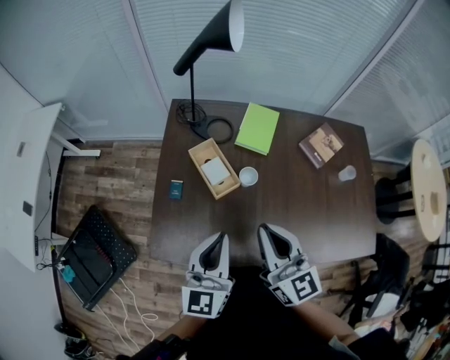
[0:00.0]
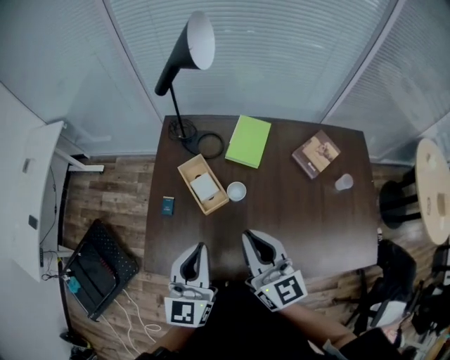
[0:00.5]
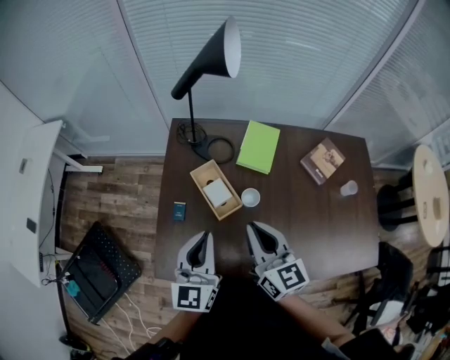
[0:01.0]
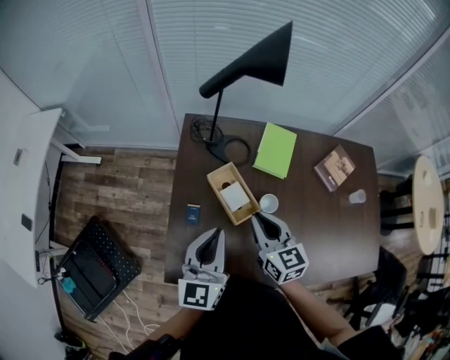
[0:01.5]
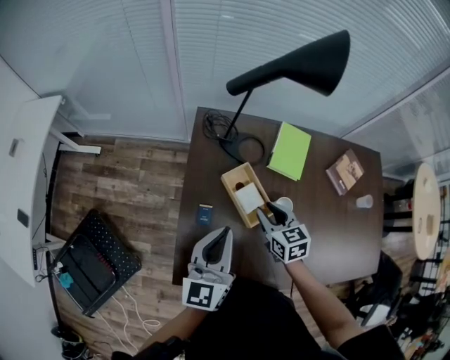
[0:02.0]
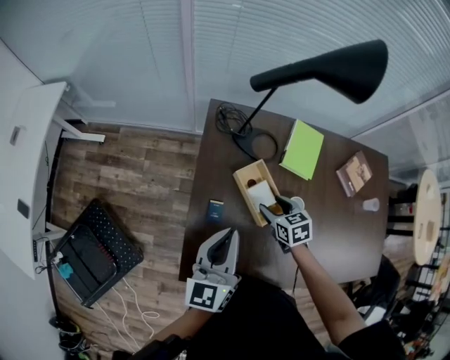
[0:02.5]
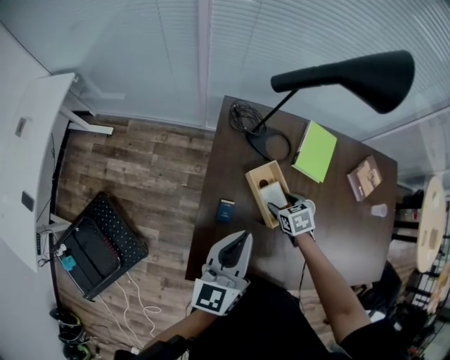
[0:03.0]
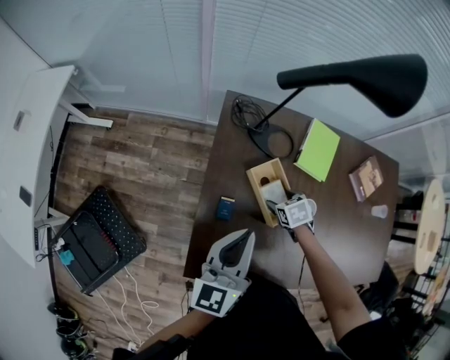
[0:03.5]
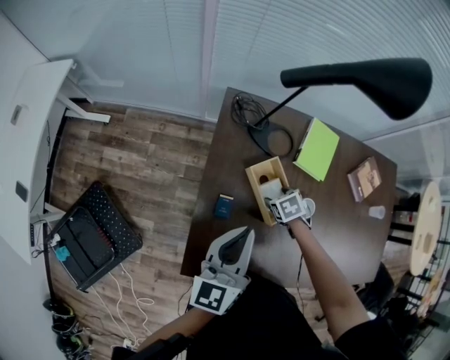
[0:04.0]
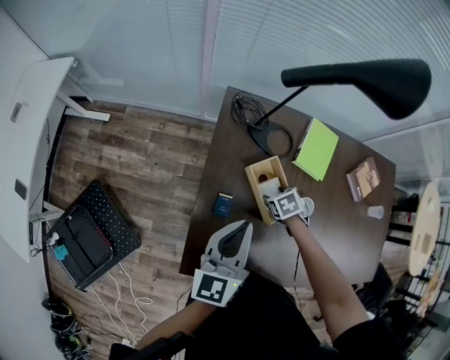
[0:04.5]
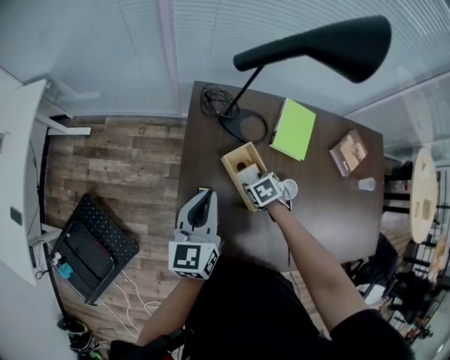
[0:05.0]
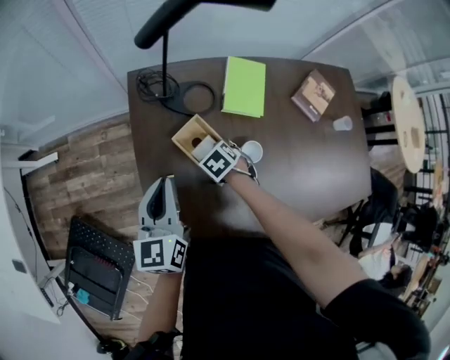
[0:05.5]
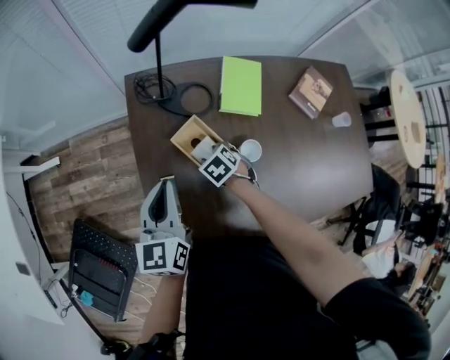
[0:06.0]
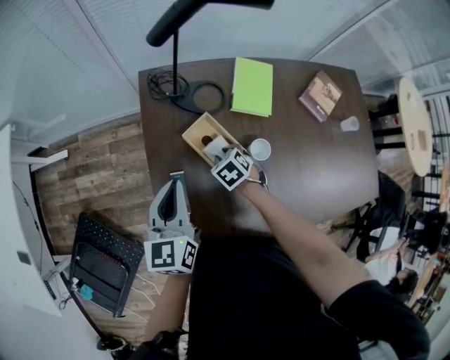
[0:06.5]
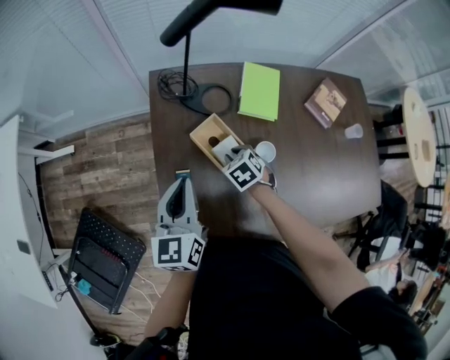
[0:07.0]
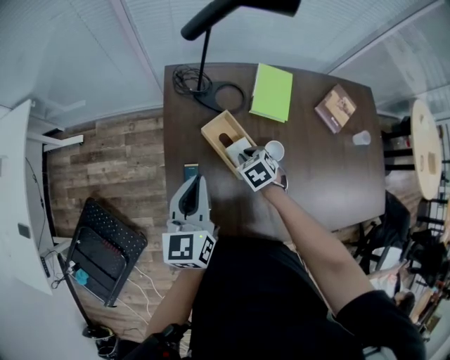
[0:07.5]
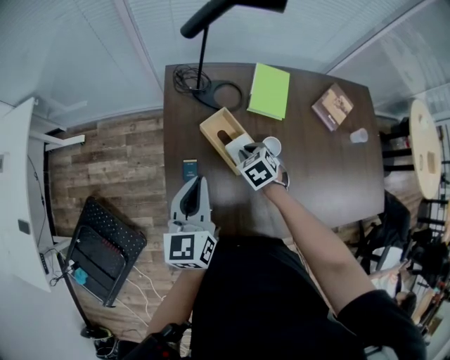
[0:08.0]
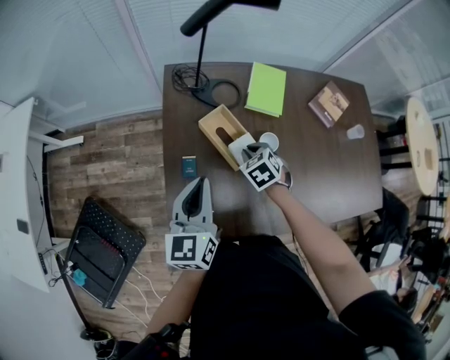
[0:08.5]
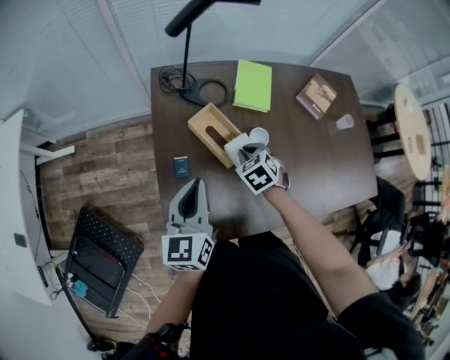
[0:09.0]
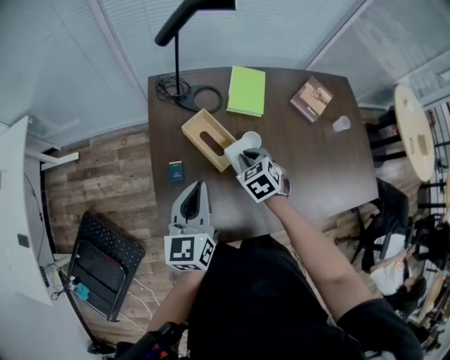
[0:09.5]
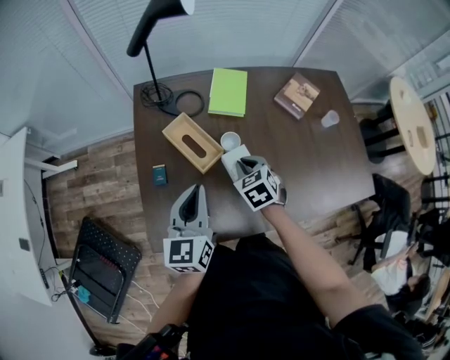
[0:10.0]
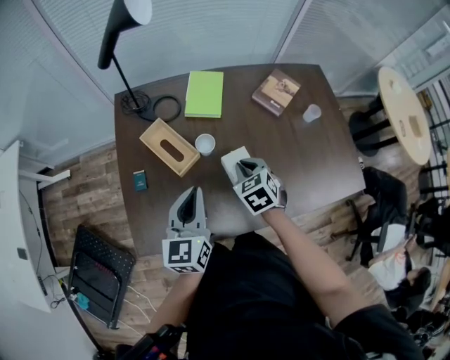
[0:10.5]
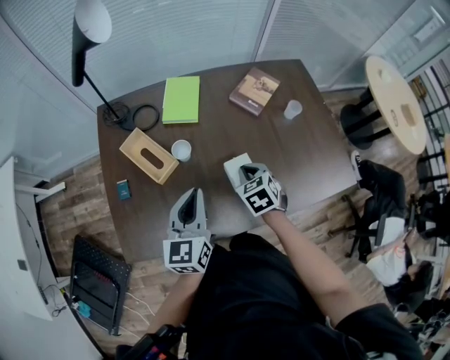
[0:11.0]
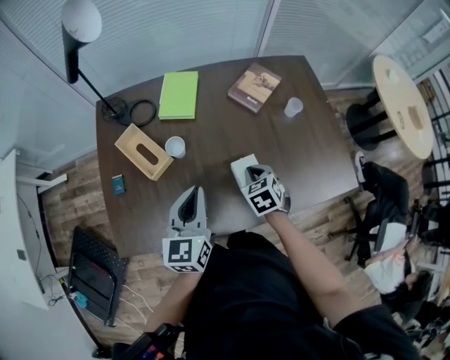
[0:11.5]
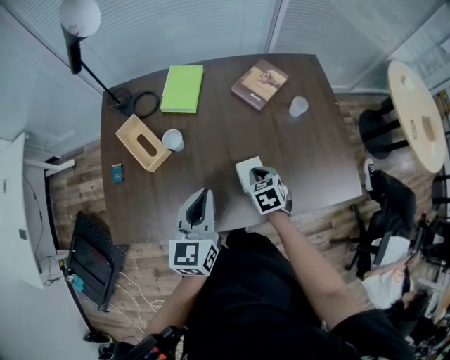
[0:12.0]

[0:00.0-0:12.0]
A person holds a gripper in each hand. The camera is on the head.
0:00.0 to 0:02.0: The right gripper moves downward and forward, some 30 cm, points its fingers roughly 40 degrees further downward, and opens up. Meanwhile the left gripper travels forward and to the left by about 20 cm.
0:02.0 to 0:04.0: The right gripper travels downward by roughly 15 cm, tips its fingers downward by some 40 degrees, and opens its fingers.
0:04.0 to 0:06.0: The left gripper moves some 5 cm.
0:06.0 to 0:08.0: The left gripper is displaced backward by about 5 cm, while the right gripper is displaced upward by some 5 cm, and closes its fingers.
0:08.0 to 0:10.0: The left gripper shifts about 15 cm to the right and backward. The right gripper shifts about 15 cm to the right, backward and upward.
0:10.0 to 0:12.0: Both grippers move to the right, approximately 25 cm.

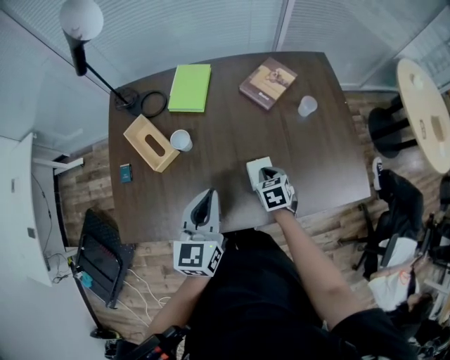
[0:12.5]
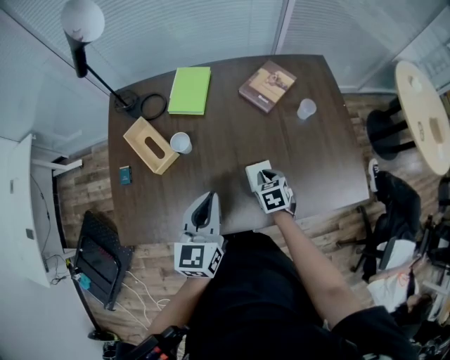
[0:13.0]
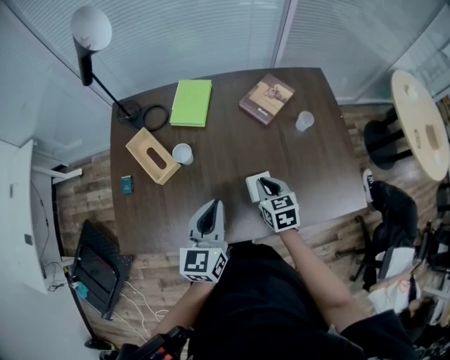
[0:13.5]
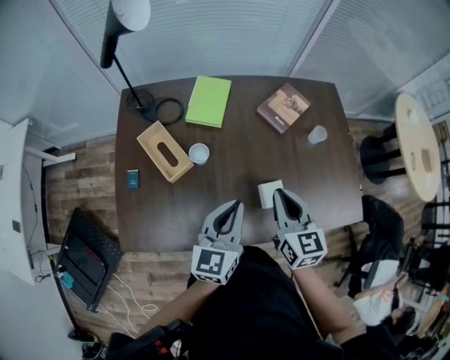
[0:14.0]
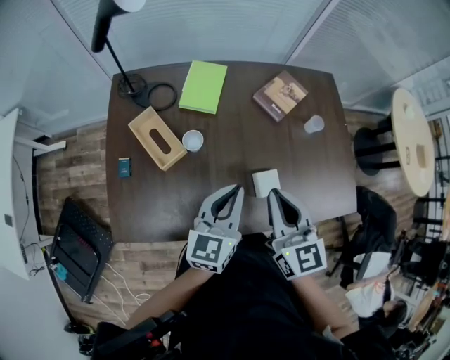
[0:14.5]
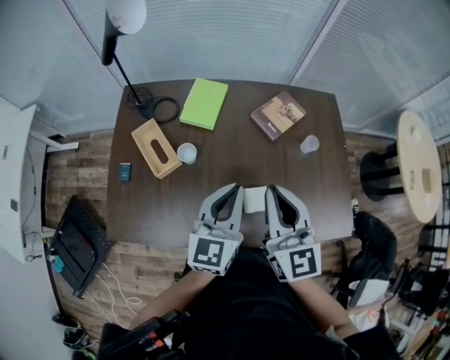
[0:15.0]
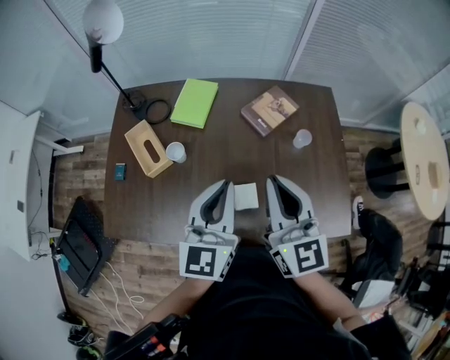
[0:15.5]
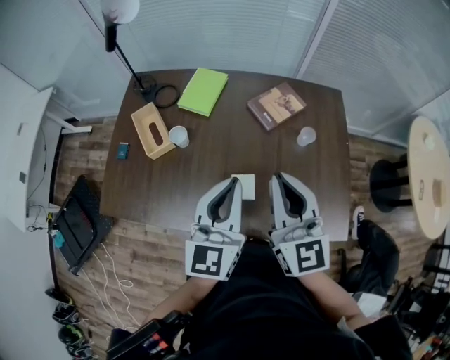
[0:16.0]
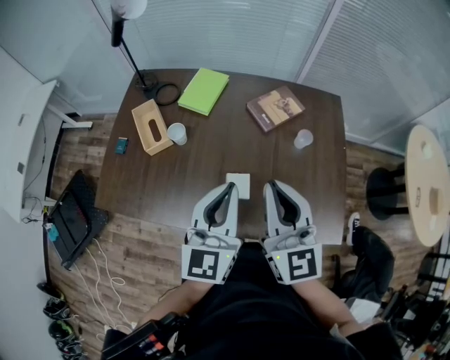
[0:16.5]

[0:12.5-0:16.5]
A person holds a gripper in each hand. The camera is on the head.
0:12.5 to 0:14.5: The right gripper is displaced upward by roughly 30 cm, and tilts its fingers approximately 40 degrees upward.
0:14.5 to 0:16.5: The grippers both shift to the right and upward by about 15 cm. The left gripper swivels roughly 30 degrees.

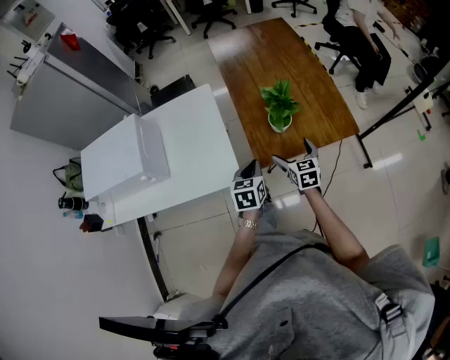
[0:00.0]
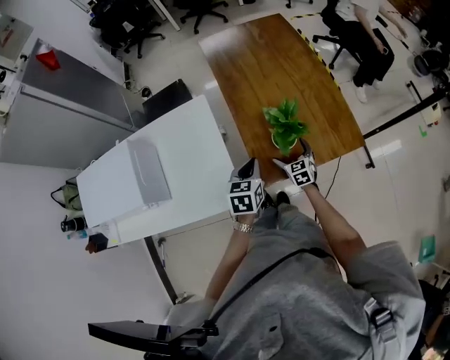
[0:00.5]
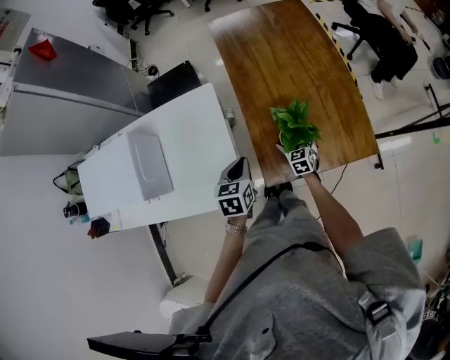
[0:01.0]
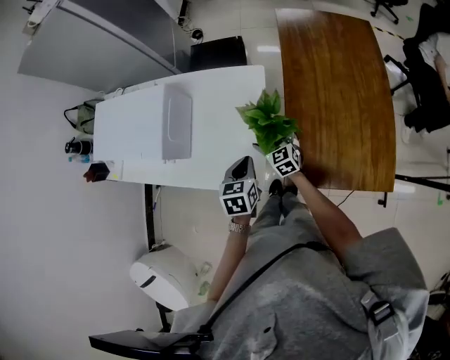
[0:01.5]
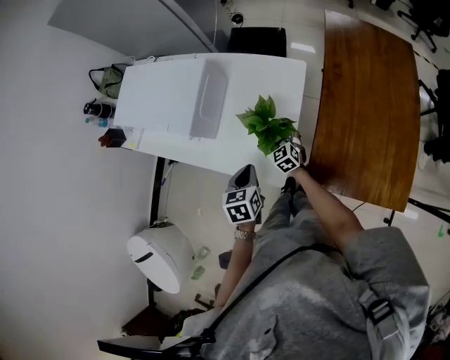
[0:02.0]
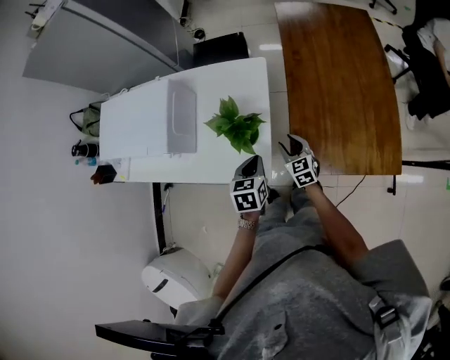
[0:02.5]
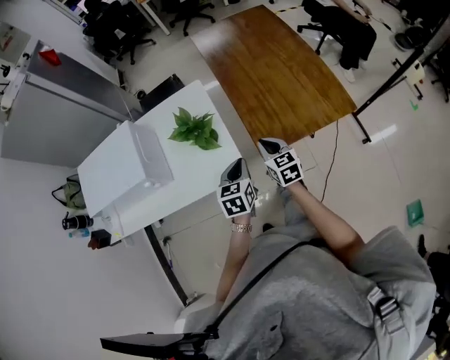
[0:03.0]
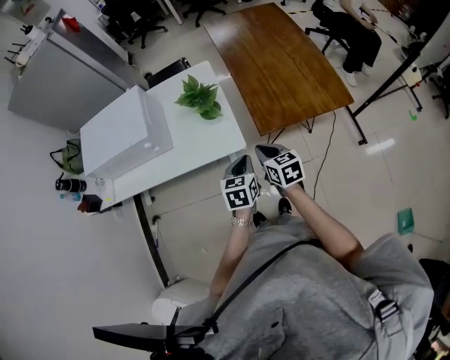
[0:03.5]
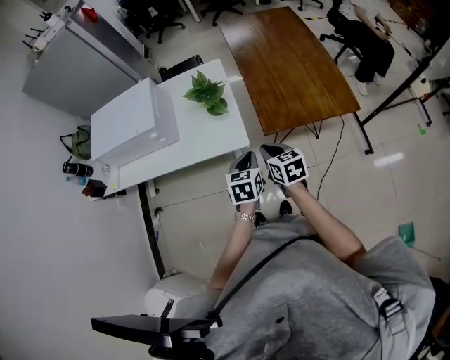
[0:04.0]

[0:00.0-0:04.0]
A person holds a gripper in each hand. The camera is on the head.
0:00.0 to 0:02.0: The right gripper goes up and down, about 15 cm each way, reversing 2 times, and swivels approximately 50 degrees. Meanwhile the left gripper shifts by some 25 cm, and swivels some 40 degrees.
0:02.0 to 0:04.0: The right gripper ends up about 40 cm from where it was, rolls clockwise, seen from behind, by some 40 degrees, and closes. The left gripper changes place by some 25 cm, and swivels roughly 30 degrees.

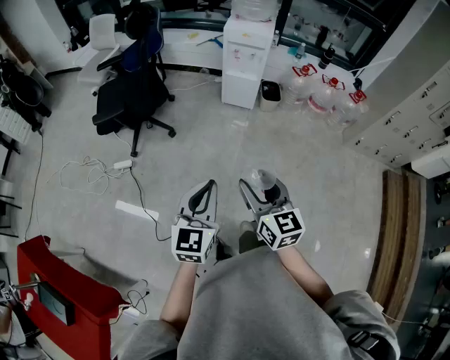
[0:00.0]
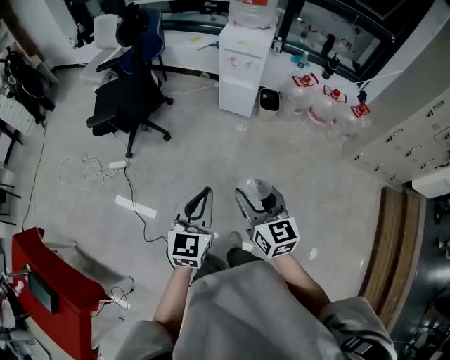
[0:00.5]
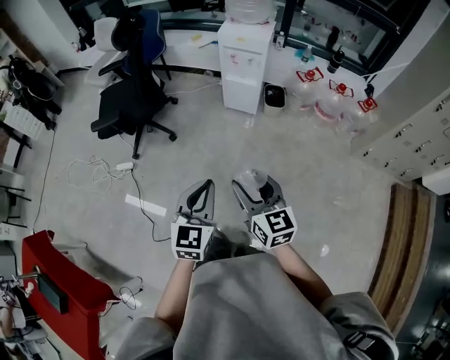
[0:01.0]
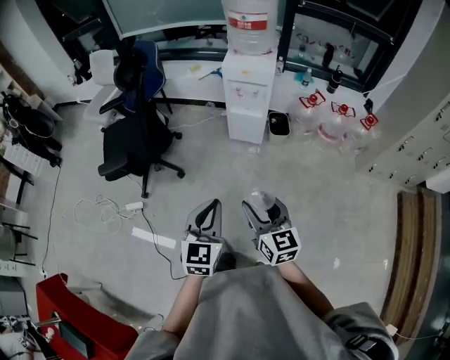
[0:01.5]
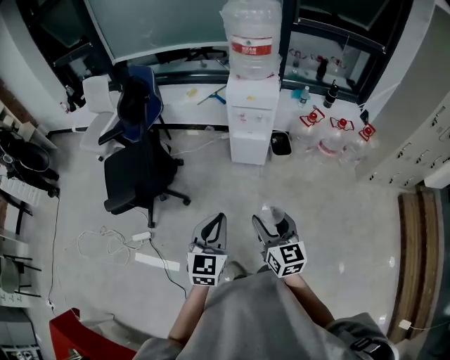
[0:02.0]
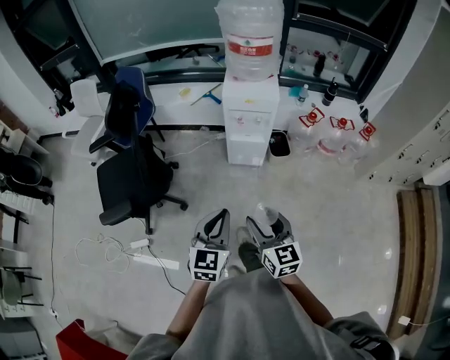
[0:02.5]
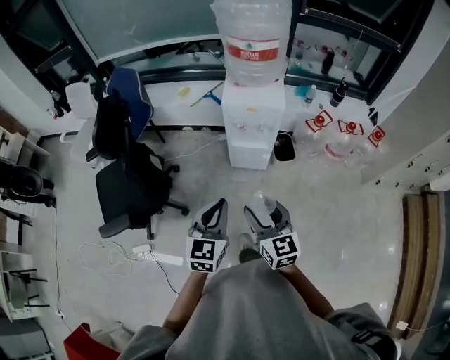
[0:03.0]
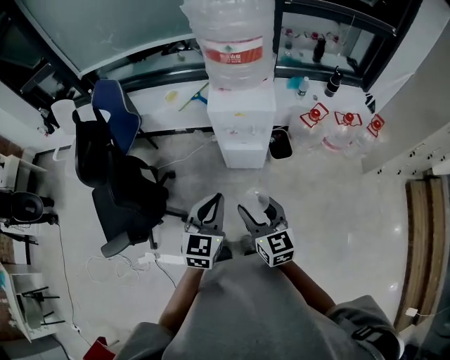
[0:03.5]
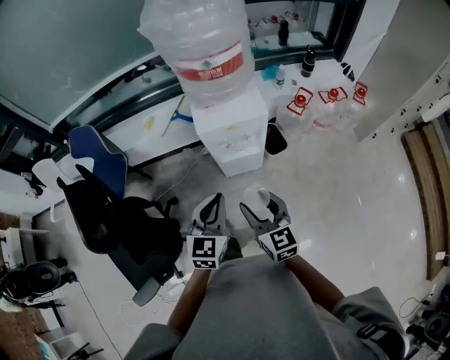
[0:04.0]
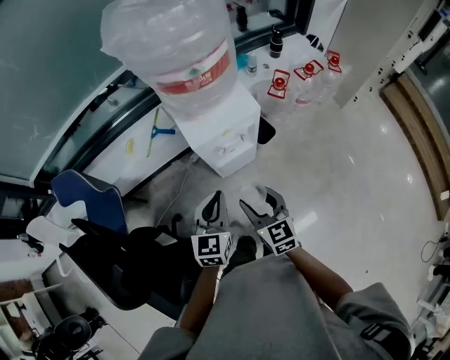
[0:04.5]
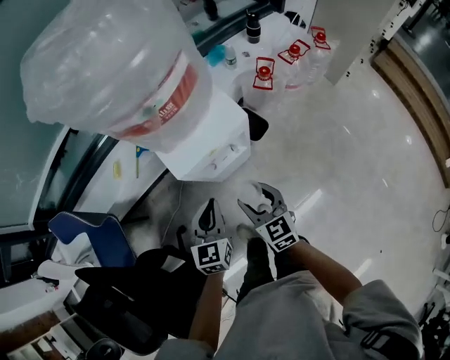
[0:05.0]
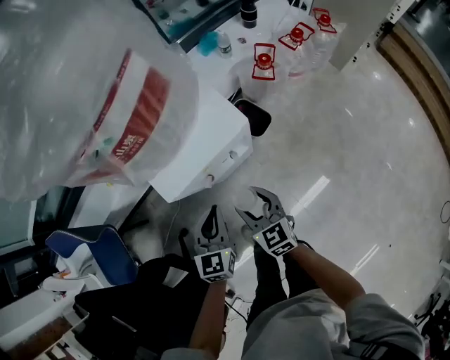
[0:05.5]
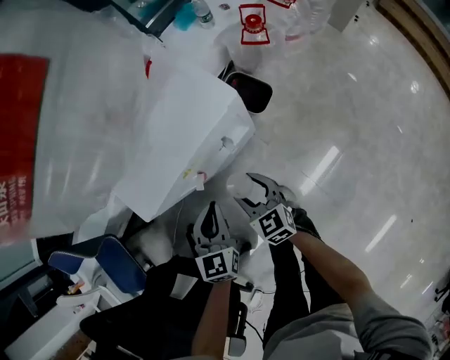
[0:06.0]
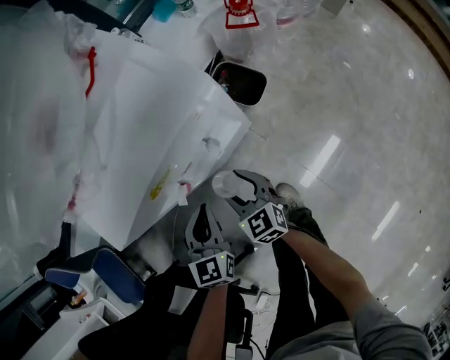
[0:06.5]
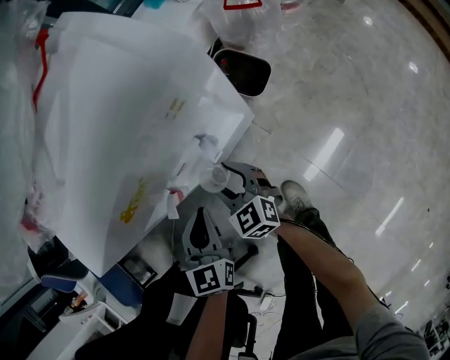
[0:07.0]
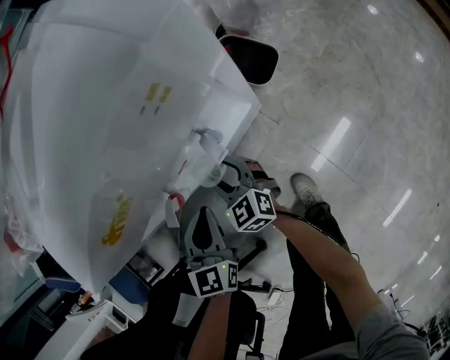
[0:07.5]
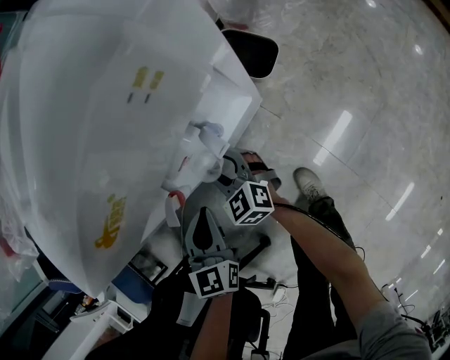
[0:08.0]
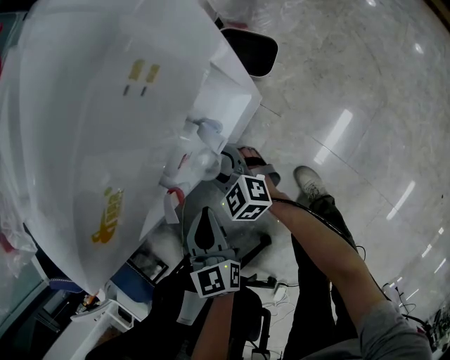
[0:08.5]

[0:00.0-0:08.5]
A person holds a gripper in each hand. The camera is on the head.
0:00.0 to 0:02.0: Both grippers move forward, about 25 cm.
0:02.0 to 0:04.0: The two grippers go approximately 40 cm forward. The left gripper turns by approximately 20 degrees.
0:04.0 to 0:06.5: The two grippers go about 50 cm downward and forward. The right gripper swivels about 20 degrees.
0:06.5 to 0:08.5: The left gripper moves downward, roughly 10 cm. The right gripper is displaced downward, to the left and forward by about 15 cm.
